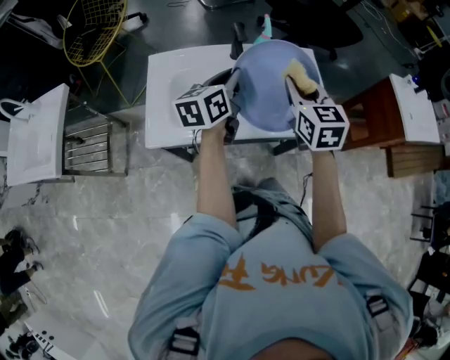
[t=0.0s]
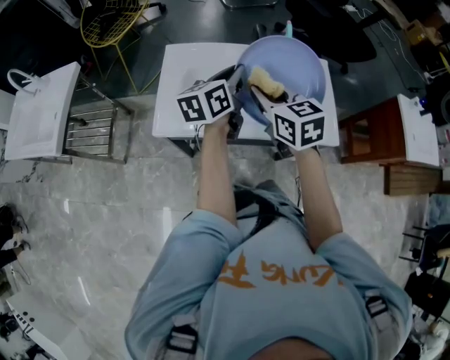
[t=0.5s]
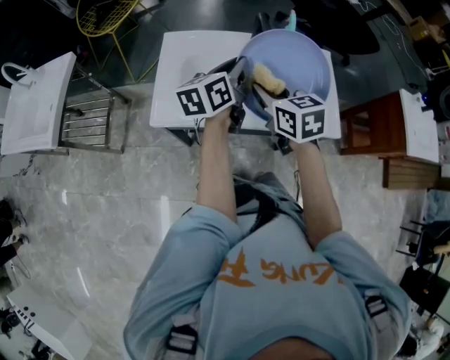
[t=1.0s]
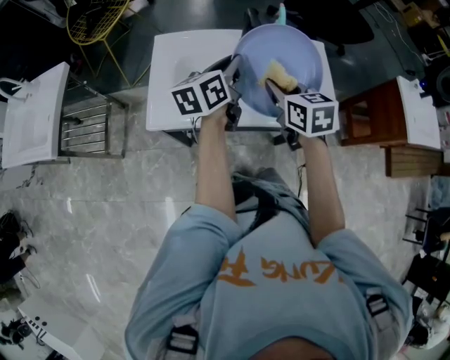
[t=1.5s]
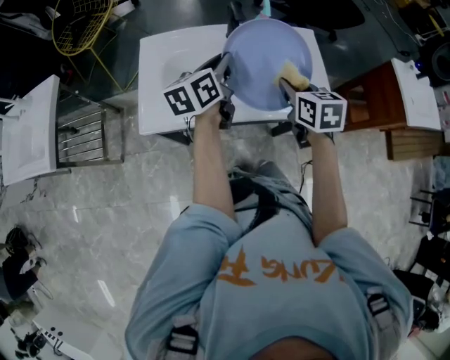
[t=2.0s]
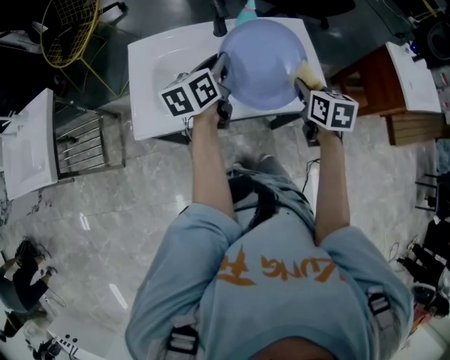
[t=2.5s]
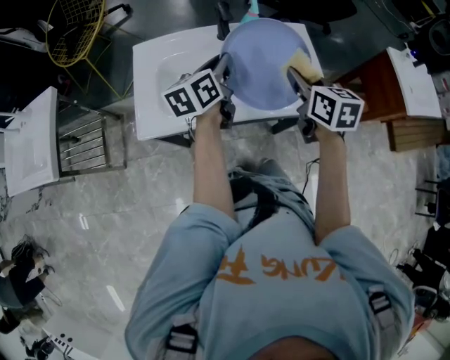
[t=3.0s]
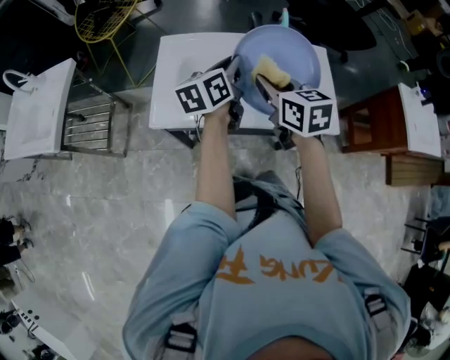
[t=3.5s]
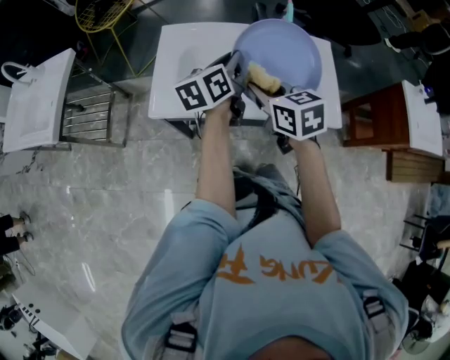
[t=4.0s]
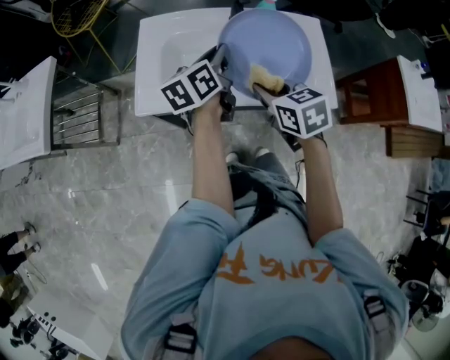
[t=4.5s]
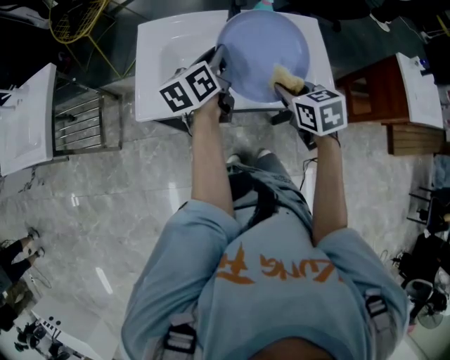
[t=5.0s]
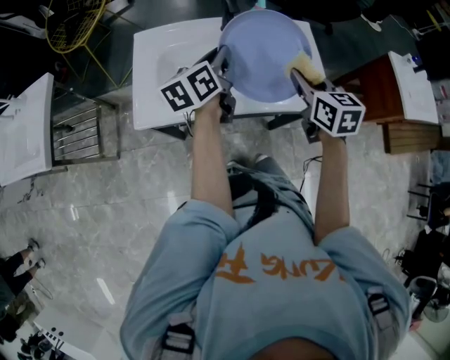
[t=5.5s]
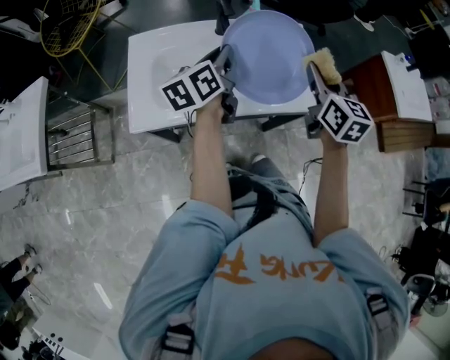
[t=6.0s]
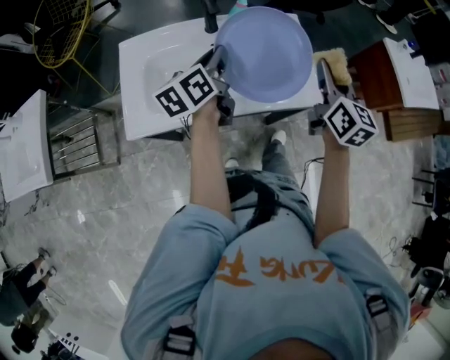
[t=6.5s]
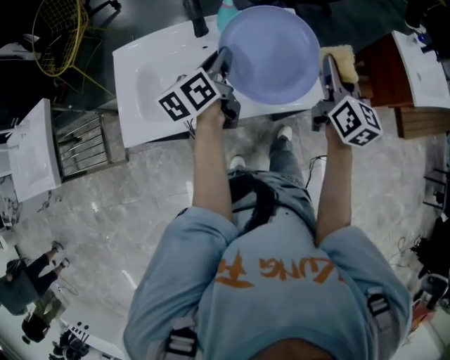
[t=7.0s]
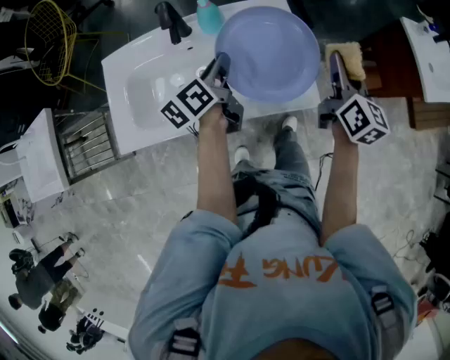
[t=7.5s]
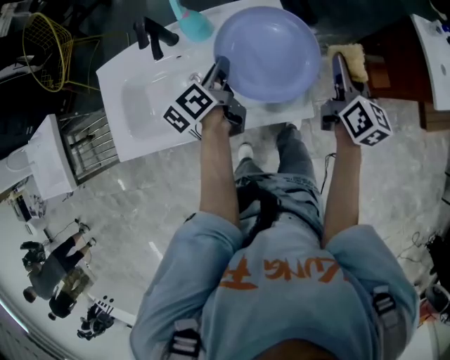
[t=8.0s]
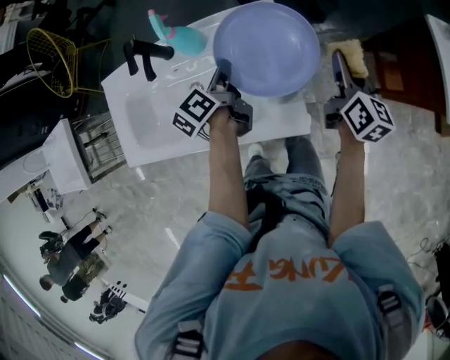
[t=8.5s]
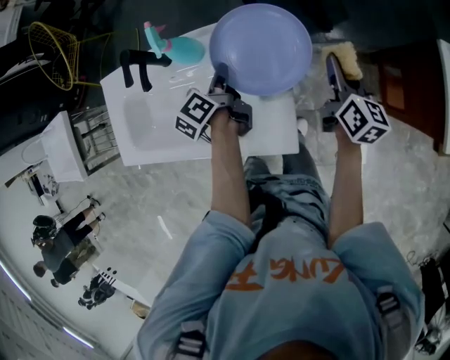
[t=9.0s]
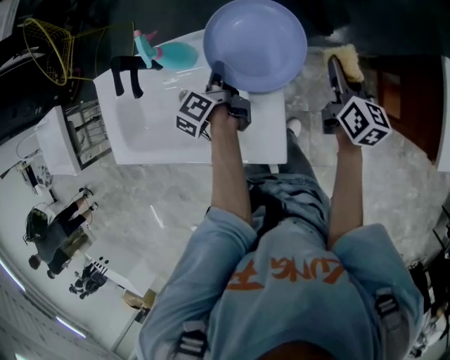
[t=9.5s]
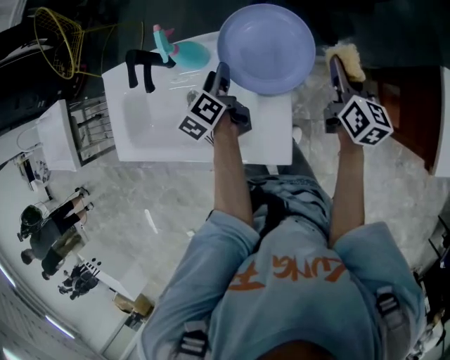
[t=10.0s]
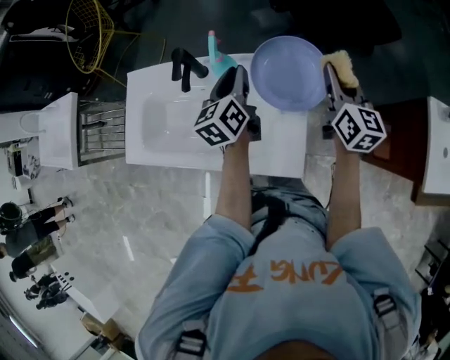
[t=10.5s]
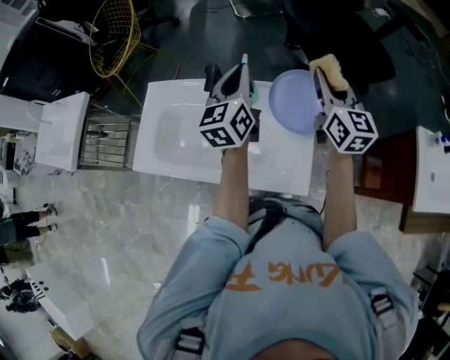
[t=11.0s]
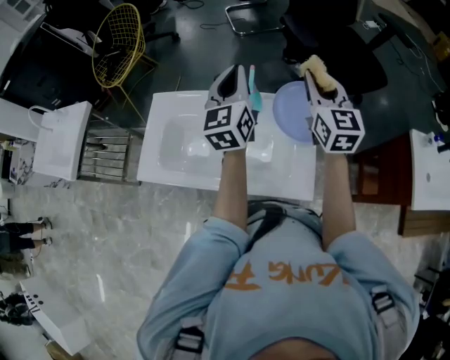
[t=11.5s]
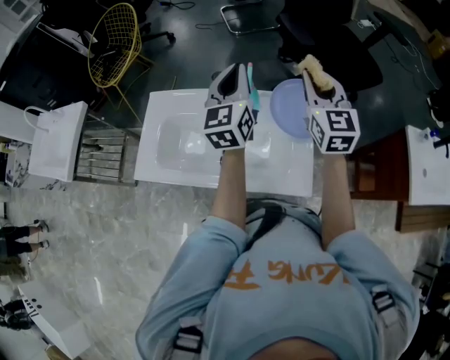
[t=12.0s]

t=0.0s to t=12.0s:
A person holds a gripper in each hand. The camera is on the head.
t=0.0s to t=2.0s: The right gripper moves downward, about 10 cm, goes to the left and returns, roughly 15 cm each way, and rotates roughly 20 degrees.
t=2.0s to t=4.0s: The right gripper shifts approximately 15 cm to the left, and swivels approximately 20 degrees.
t=4.0s to t=6.0s: The left gripper moves to the right, roughly 5 cm. The right gripper heads to the right, covering some 20 cm, and changes its angle by about 40 degrees.
t=6.0s to t=8.0s: The left gripper shifts approximately 25 cm to the right, downward and forward, and changes its angle by about 20 degrees; the right gripper is displaced to the right, forward and downward by roughly 30 cm, and rotates roughly 20 degrees.
t=8.0s to t=10.0s: The right gripper heads forward, covering roughly 15 cm. Meanwhile the left gripper is displaced forward by some 10 cm, rotates roughly 20 degrees, and opens.
t=10.0s to t=12.0s: The right gripper is displaced upward and to the left by roughly 35 cm, and twists approximately 40 degrees counterclockwise, seen from behind. Meanwhile the left gripper heads upward, covering about 30 cm, points its fingers some 30 degrees further upward, and closes its fingers.

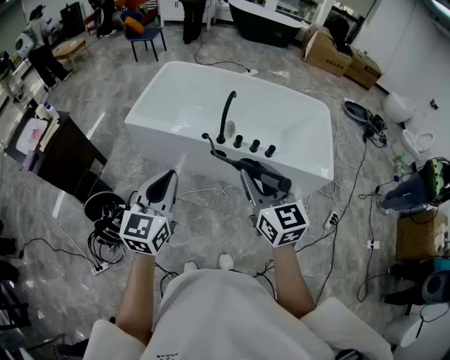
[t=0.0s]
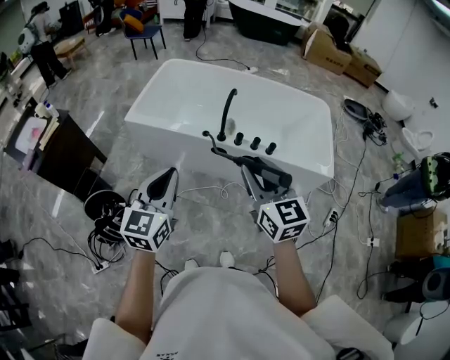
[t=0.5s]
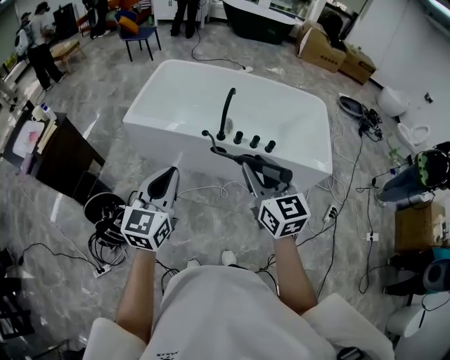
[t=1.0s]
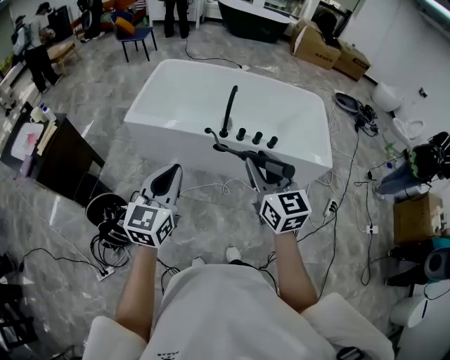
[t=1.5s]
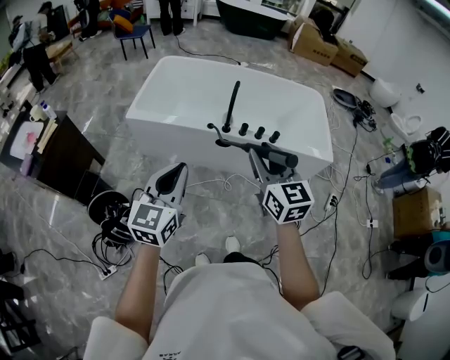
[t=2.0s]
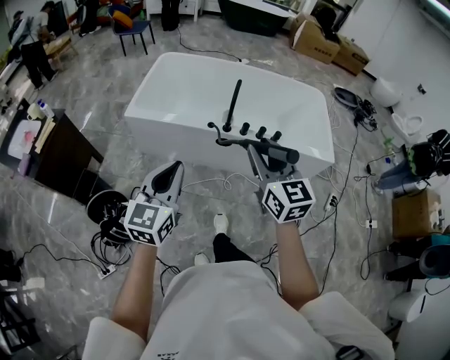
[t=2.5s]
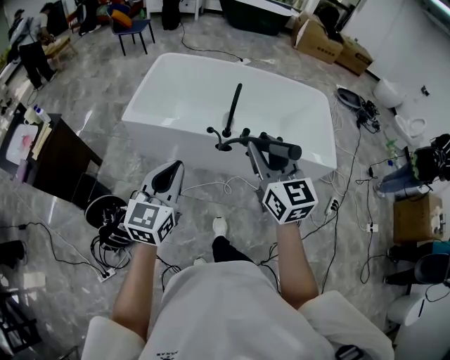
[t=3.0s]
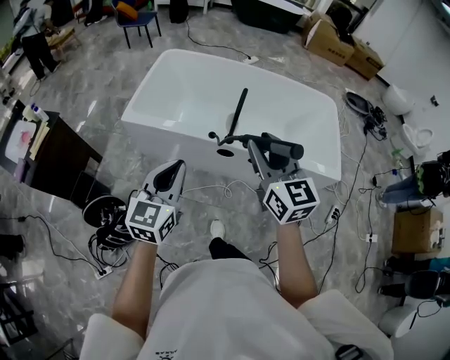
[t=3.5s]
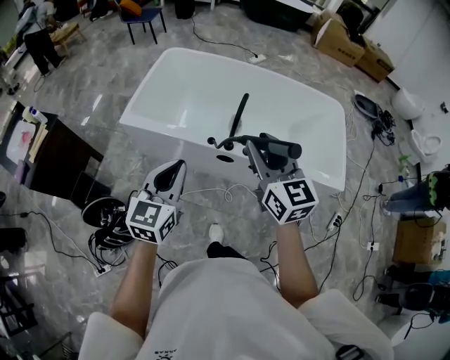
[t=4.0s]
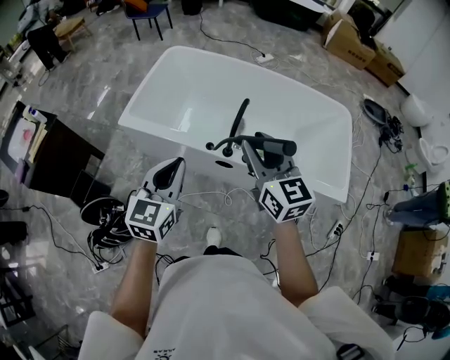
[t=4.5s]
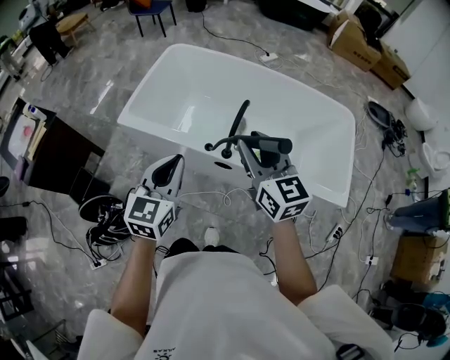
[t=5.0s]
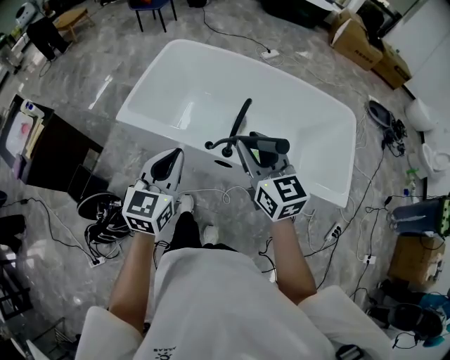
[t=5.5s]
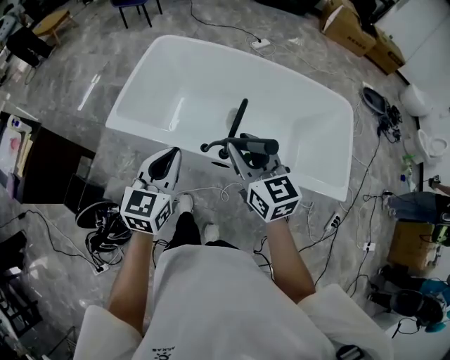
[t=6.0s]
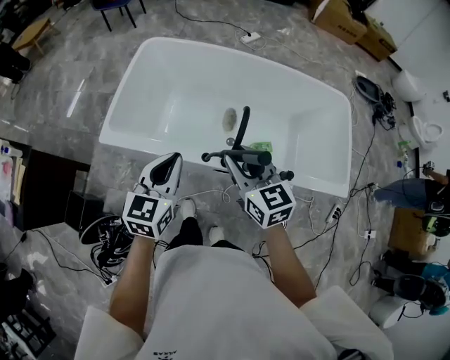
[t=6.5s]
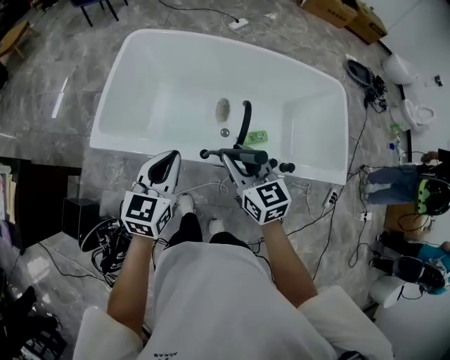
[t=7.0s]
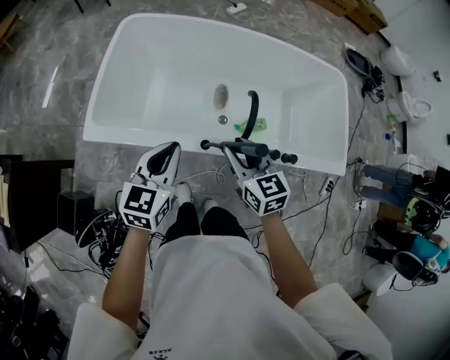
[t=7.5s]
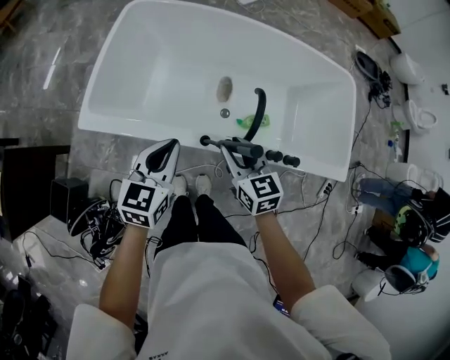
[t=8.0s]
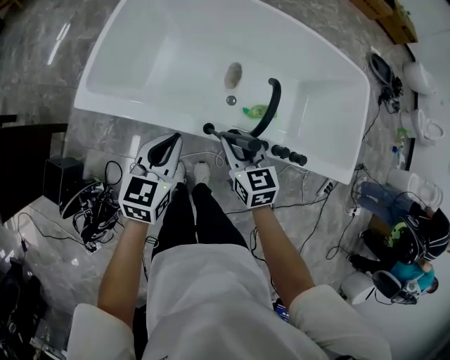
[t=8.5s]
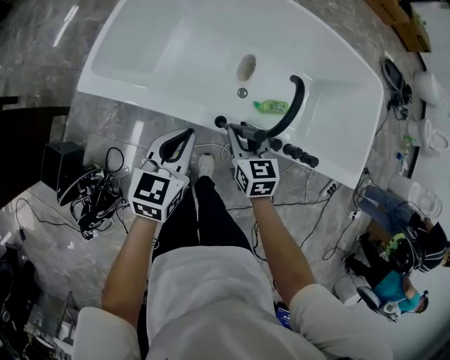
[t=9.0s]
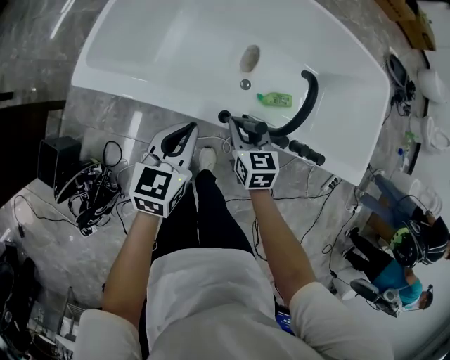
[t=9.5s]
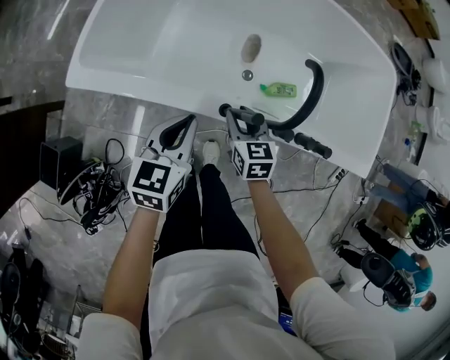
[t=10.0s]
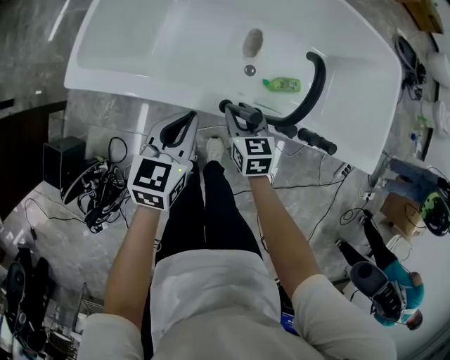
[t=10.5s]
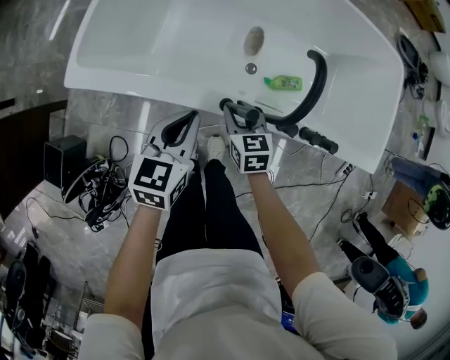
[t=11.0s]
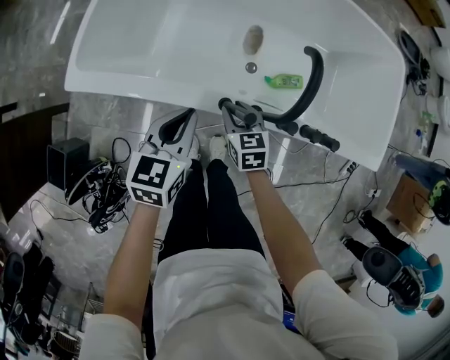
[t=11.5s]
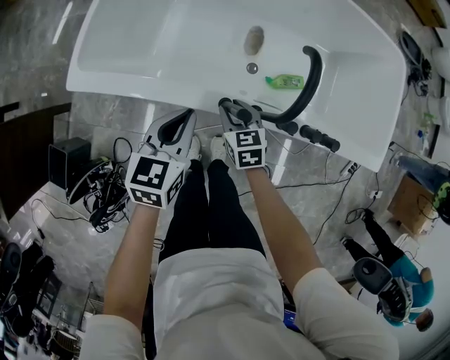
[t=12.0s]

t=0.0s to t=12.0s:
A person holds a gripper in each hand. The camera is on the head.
t=0.0s to t=2.0s: The two grippers go some 5 cm to the left.
t=2.0s to t=4.0s: Both grippers travel together forward, roughly 20 cm.
t=4.0s to t=6.0s: The left gripper travels forward by approximately 15 cm. The right gripper moves forward and downward, approximately 15 cm.
t=6.0s to t=8.0s: The left gripper travels downward, forward and to the left by roughly 20 cm; the right gripper is displaced downward by roughly 20 cm.
t=8.0s to t=10.0s: The two grippers go roughly 15 cm downward.
t=10.0s to t=12.0s: The grippers move only a little.

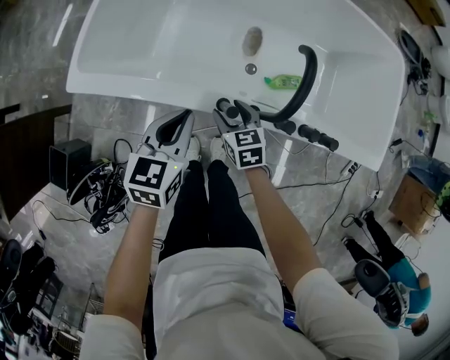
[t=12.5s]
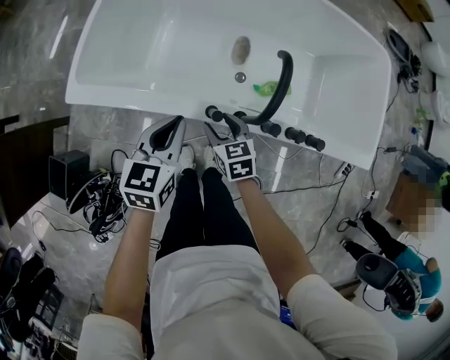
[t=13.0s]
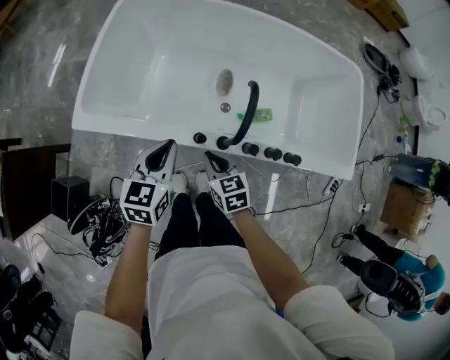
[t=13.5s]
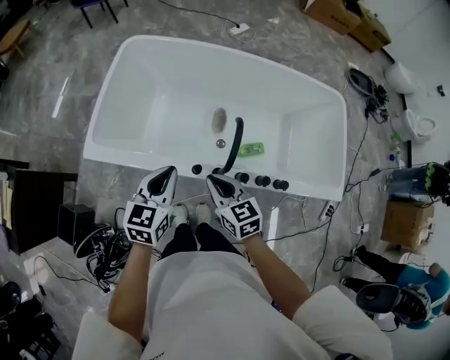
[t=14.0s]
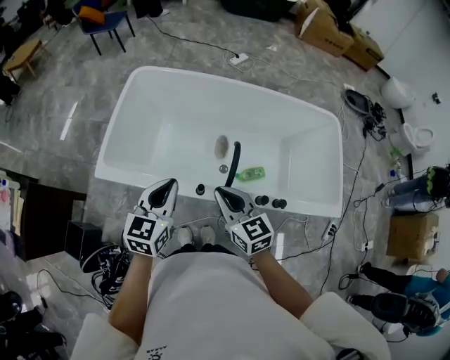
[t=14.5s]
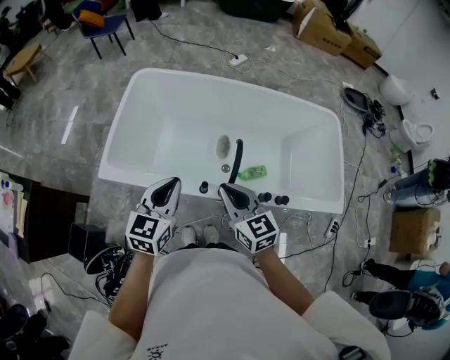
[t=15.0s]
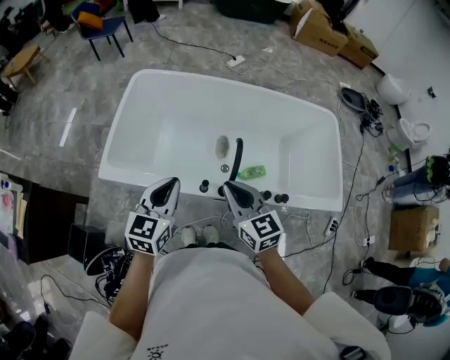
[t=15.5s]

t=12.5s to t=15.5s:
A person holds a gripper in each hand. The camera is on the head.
t=12.5s to t=14.0s: The left gripper goes about 15 cm upward; the right gripper moves upward, roughly 25 cm, and closes.
t=14.0s to t=15.5s: The right gripper moves upward, roughly 10 cm; the left gripper is displaced upward by roughly 10 cm.
